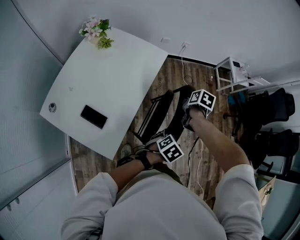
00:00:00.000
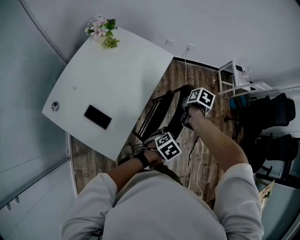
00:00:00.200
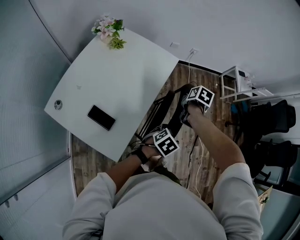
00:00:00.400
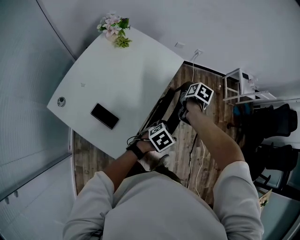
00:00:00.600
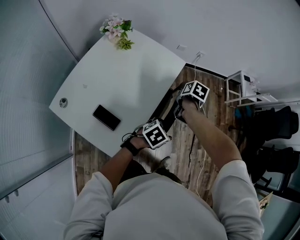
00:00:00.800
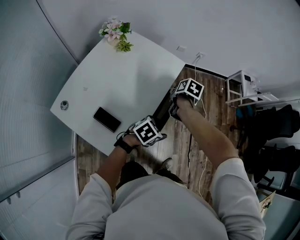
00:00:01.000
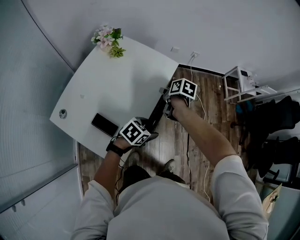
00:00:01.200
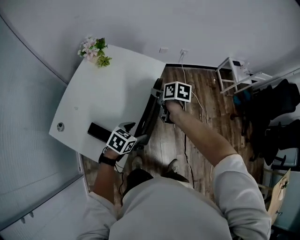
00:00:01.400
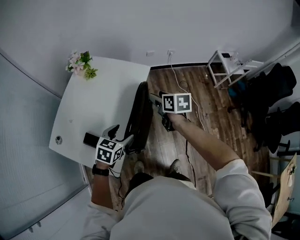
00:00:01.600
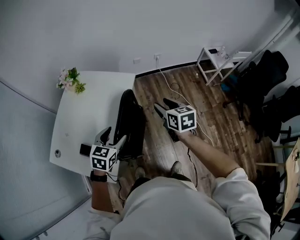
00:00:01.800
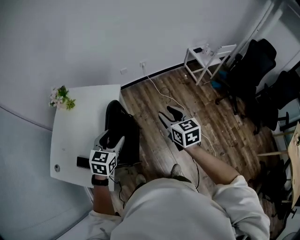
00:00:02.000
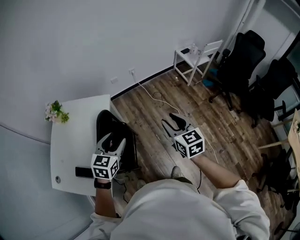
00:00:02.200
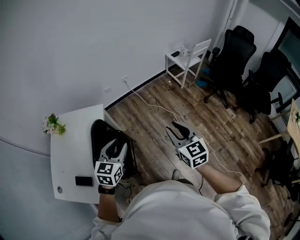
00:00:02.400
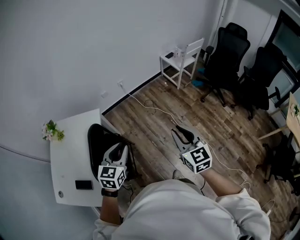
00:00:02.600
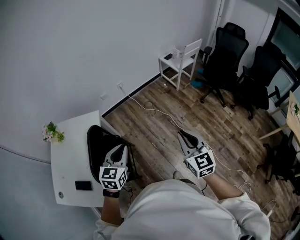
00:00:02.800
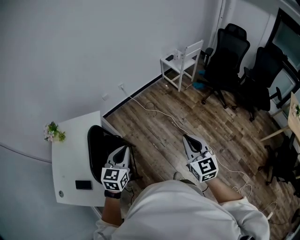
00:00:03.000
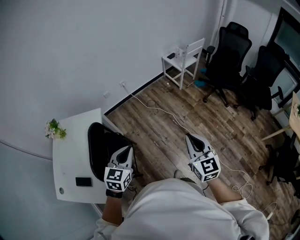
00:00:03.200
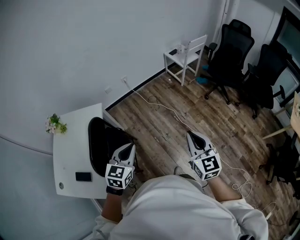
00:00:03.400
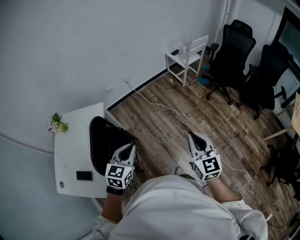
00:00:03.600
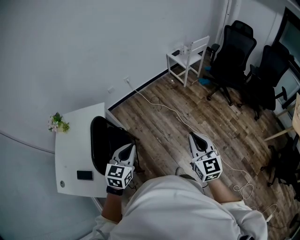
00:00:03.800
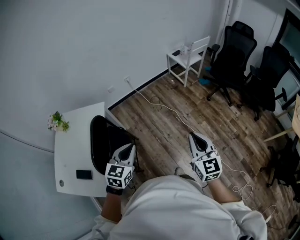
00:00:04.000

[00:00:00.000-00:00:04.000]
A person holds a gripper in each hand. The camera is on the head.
00:00:00.000 to 00:00:01.400: The two grippers go roughly 20 cm to the left. The right gripper swivels some 30 degrees, and opens.
00:00:01.400 to 00:00:02.600: The left gripper travels to the right and upward by roughly 35 cm, changes its angle by roughly 30 degrees, and closes up; the right gripper travels to the right, upward and backward by some 60 cm, angles its fingers upward, by approximately 30 degrees, and closes up.
00:00:02.600 to 00:00:04.000: The two grippers go about 10 cm to the right and backward.

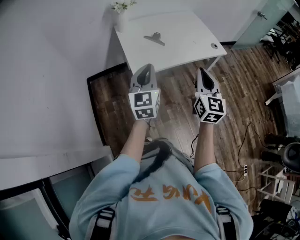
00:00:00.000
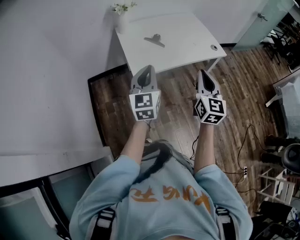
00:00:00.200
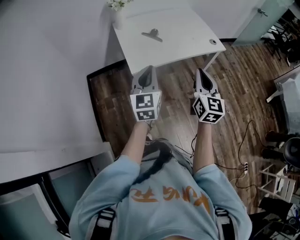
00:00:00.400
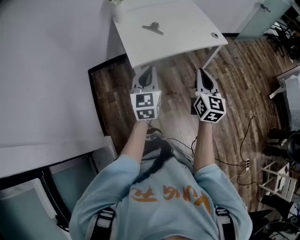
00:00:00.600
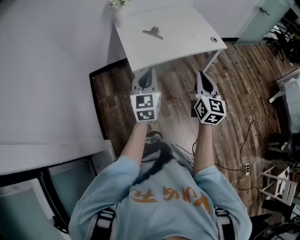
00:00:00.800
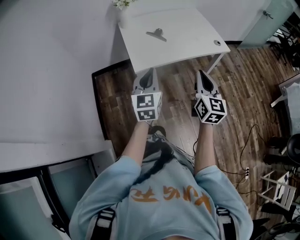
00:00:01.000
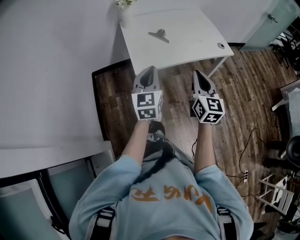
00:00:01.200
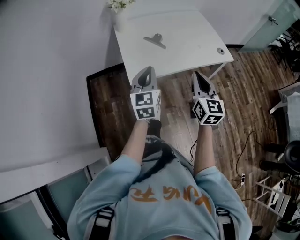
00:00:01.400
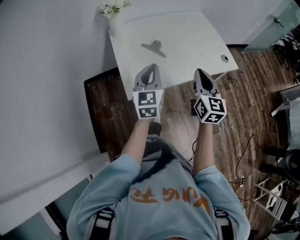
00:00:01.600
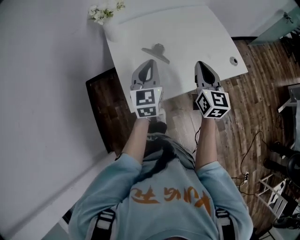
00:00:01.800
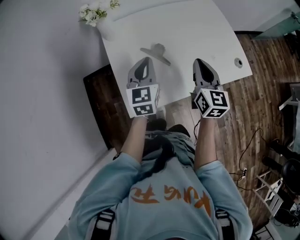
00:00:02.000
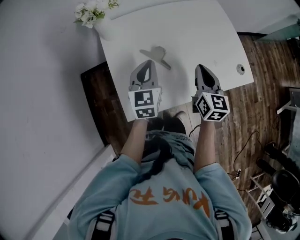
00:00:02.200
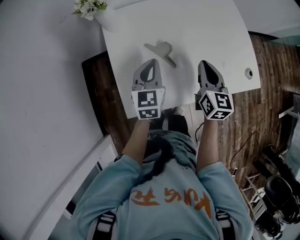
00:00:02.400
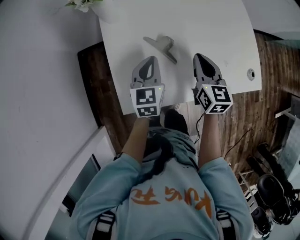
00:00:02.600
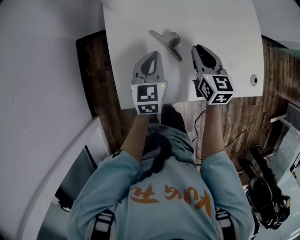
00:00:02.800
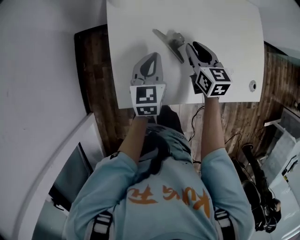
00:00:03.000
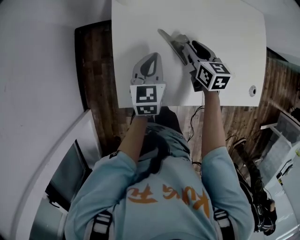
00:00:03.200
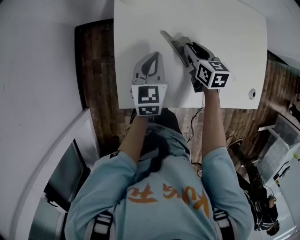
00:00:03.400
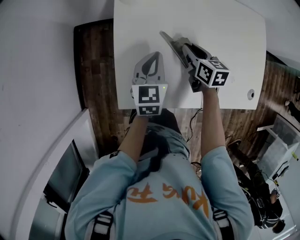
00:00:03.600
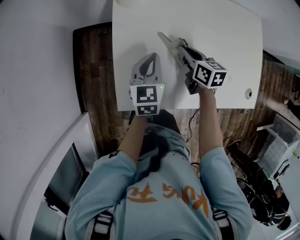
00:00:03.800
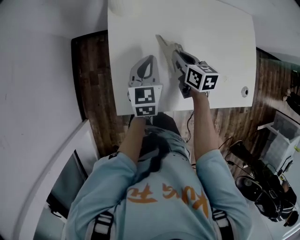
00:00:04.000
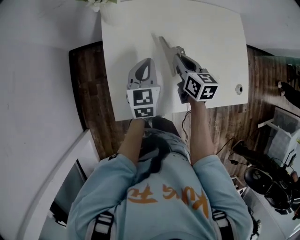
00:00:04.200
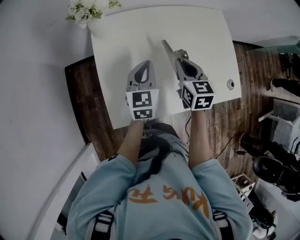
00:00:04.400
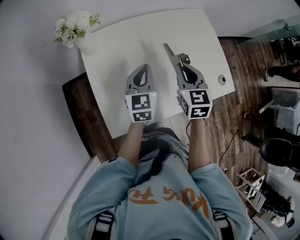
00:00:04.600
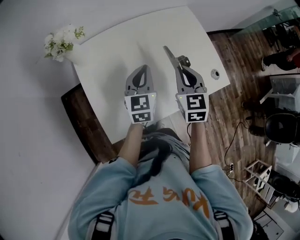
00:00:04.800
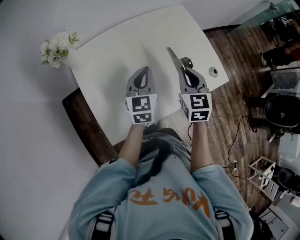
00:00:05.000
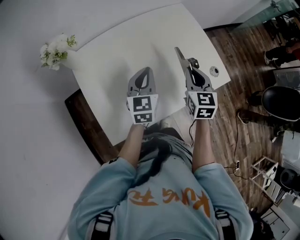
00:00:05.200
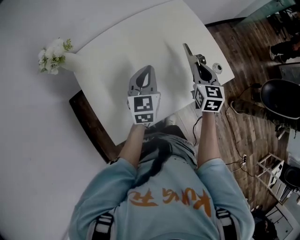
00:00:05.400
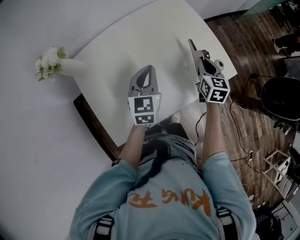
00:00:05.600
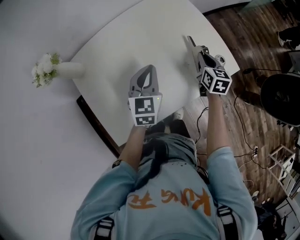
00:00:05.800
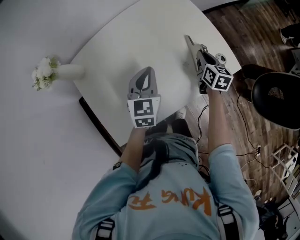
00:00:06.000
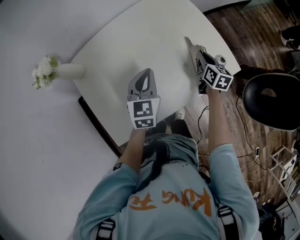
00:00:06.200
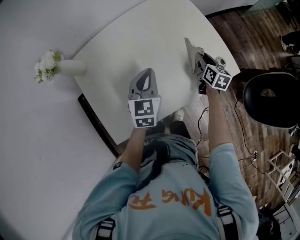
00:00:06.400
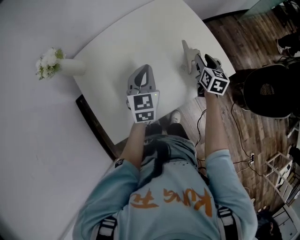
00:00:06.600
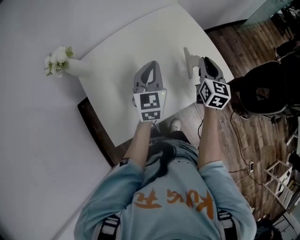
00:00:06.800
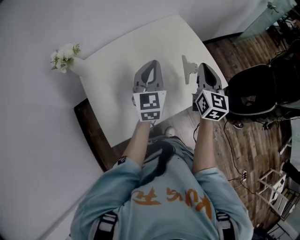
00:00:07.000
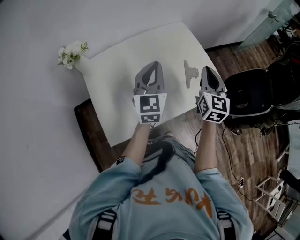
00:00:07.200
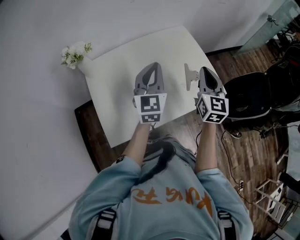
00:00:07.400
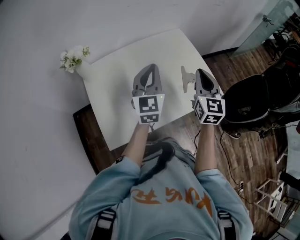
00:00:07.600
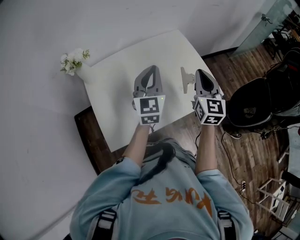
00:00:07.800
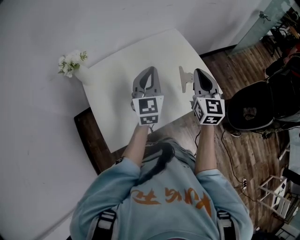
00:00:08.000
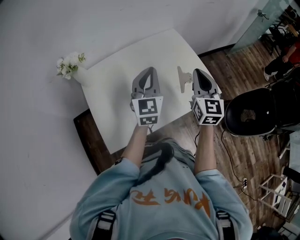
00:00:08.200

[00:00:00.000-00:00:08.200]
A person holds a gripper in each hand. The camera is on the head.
00:00:00.000 to 00:00:01.600: The two grippers go about 20 cm forward.
00:00:01.600 to 00:00:03.200: Both grippers travel together forward and downward, roughly 35 cm. The right gripper swivels roughly 40 degrees, and opens, while the left gripper swivels roughly 30 degrees.
00:00:03.200 to 00:00:05.000: The right gripper moves approximately 25 cm, changes its angle by approximately 40 degrees, and closes. The left gripper changes place by roughly 20 cm, and rotates about 30 degrees.
00:00:05.000 to 00:00:06.600: The right gripper moves to the right, downward and forward, roughly 25 cm, turns by about 30 degrees, and opens its fingers. The left gripper shifts approximately 5 cm to the right.
00:00:06.600 to 00:00:08.200: The left gripper heads upward, covering about 15 cm, and swivels about 20 degrees. Meanwhile the right gripper travels upward by approximately 25 cm, rotates about 30 degrees, and closes up.

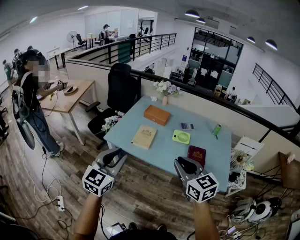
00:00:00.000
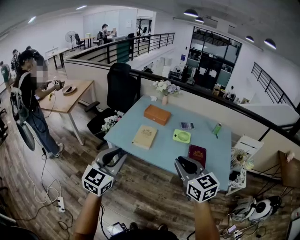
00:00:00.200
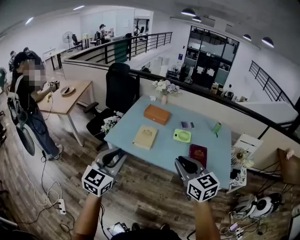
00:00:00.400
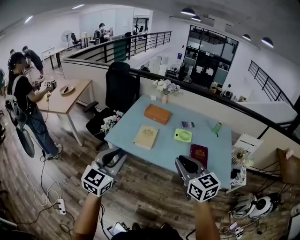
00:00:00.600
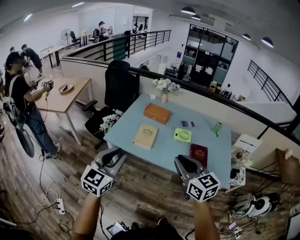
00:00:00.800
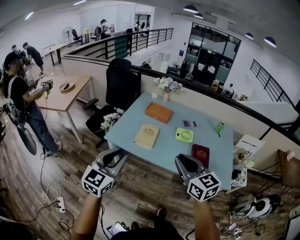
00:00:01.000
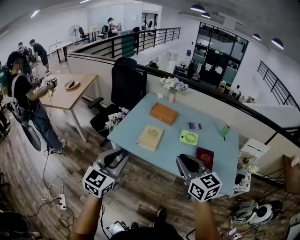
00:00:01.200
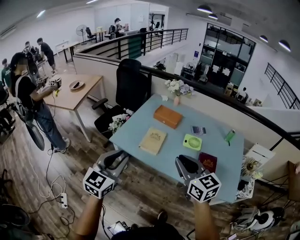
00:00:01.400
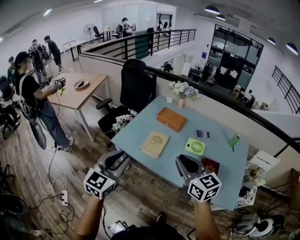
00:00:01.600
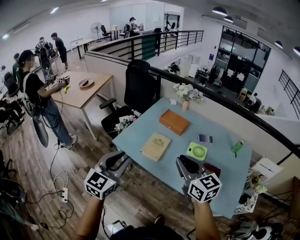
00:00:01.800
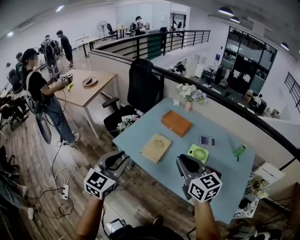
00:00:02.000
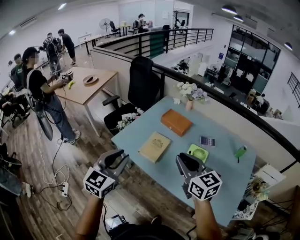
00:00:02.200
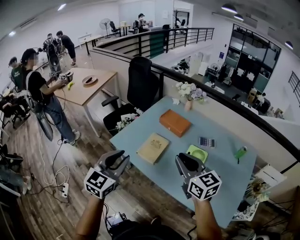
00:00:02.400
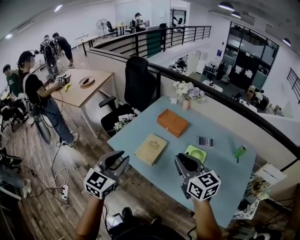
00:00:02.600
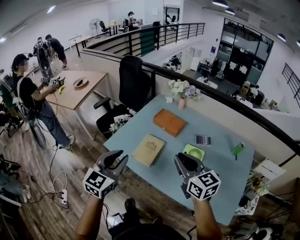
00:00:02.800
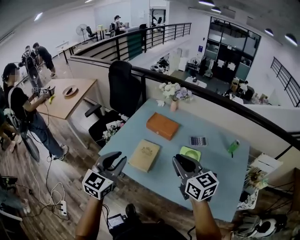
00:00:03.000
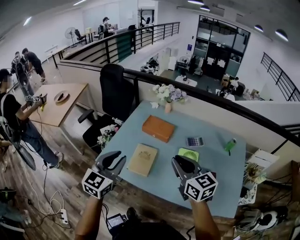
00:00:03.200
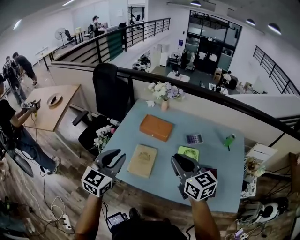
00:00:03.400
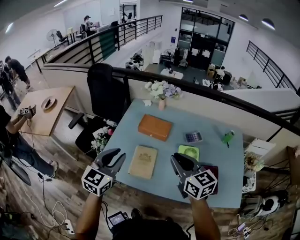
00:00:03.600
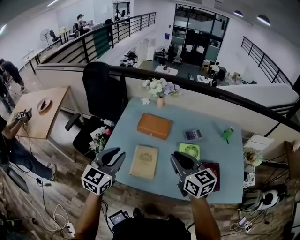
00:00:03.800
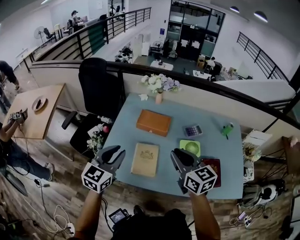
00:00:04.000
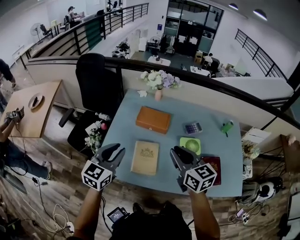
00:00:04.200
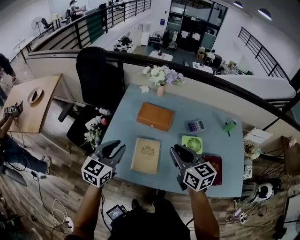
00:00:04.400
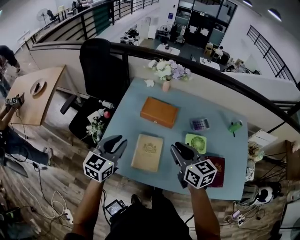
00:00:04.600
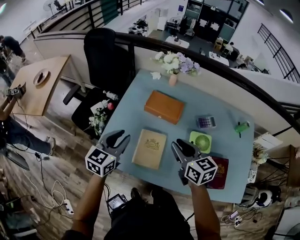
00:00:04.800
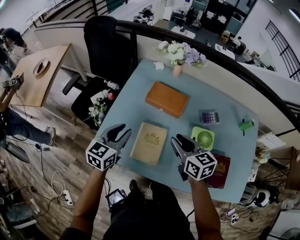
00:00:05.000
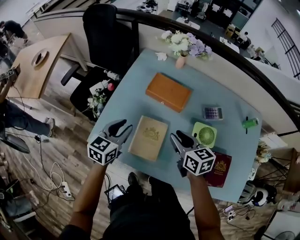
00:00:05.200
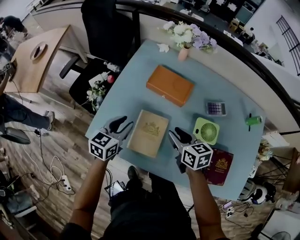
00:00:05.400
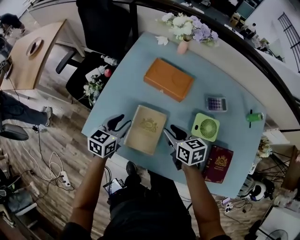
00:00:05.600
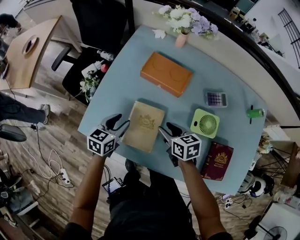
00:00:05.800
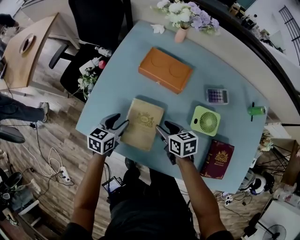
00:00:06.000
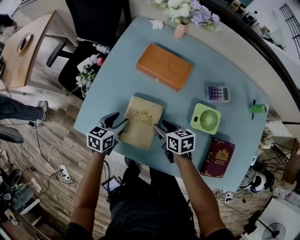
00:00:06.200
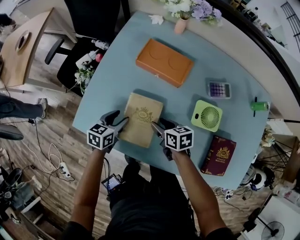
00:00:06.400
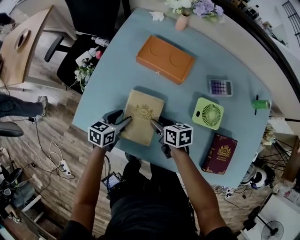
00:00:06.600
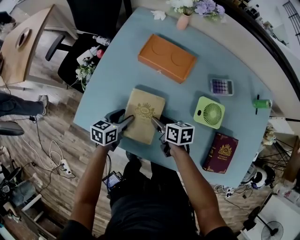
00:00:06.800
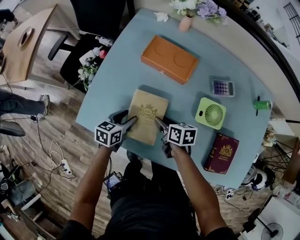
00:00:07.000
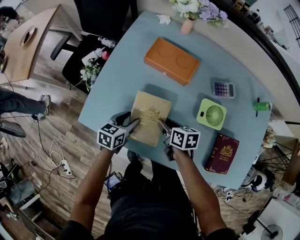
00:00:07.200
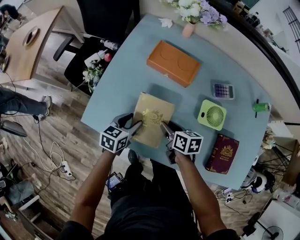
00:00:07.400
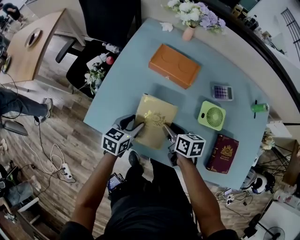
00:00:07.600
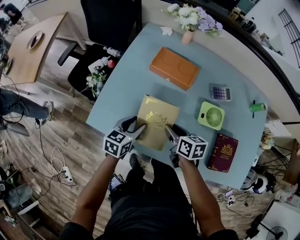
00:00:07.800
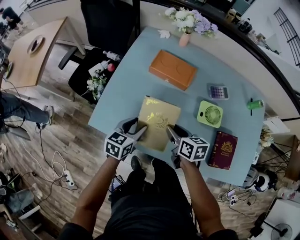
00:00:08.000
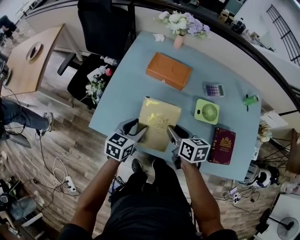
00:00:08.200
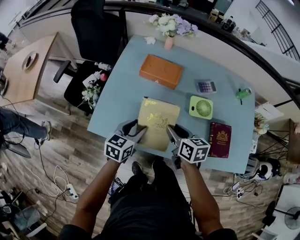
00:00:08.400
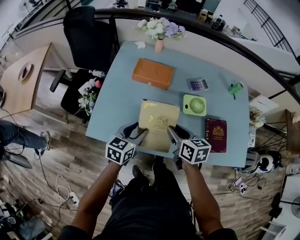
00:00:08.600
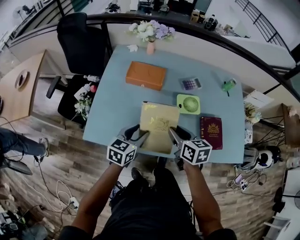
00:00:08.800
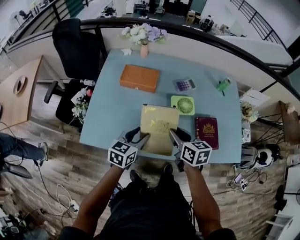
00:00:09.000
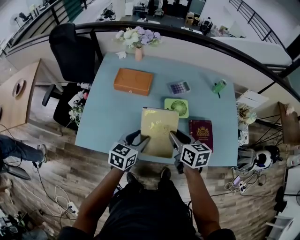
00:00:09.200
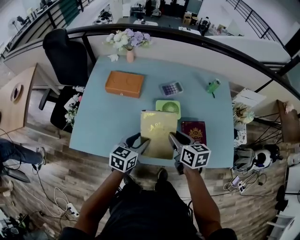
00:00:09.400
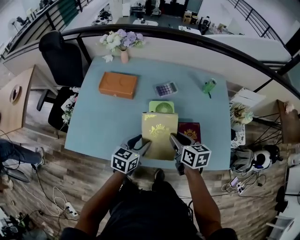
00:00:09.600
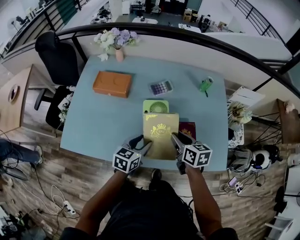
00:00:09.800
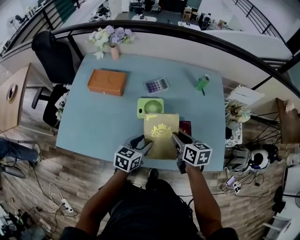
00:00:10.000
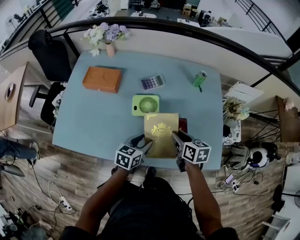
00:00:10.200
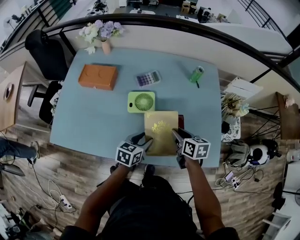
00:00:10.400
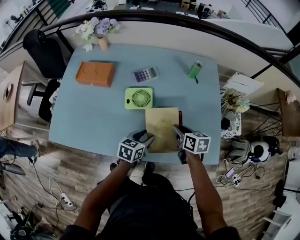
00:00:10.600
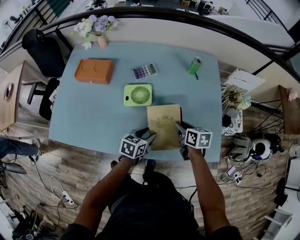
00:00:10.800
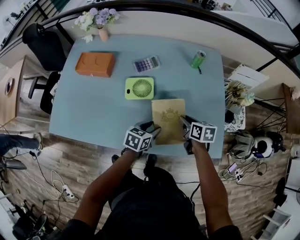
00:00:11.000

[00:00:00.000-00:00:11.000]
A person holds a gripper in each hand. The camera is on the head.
00:00:00.000 to 00:00:01.600: The grippers both shift forward by about 10 cm.
00:00:01.600 to 00:00:03.200: Both grippers move forward and to the right, approximately 20 cm.
00:00:03.200 to 00:00:04.800: Both grippers travel together forward, downward and to the left, about 20 cm.
00:00:04.800 to 00:00:06.200: The grippers both shift downward by about 25 cm. The left gripper swivels approximately 30 degrees, and opens up, while the right gripper turns by about 30 degrees, and opens its fingers.
00:00:06.200 to 00:00:07.800: Both grippers move upward, about 5 cm.
00:00:07.800 to 00:00:09.400: The grippers both shift to the right and upward by approximately 25 cm. The right gripper changes its angle by some 20 degrees.
00:00:09.400 to 00:00:11.000: The two grippers go about 30 cm to the right and downward.
